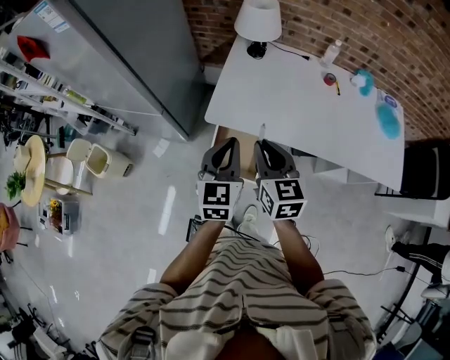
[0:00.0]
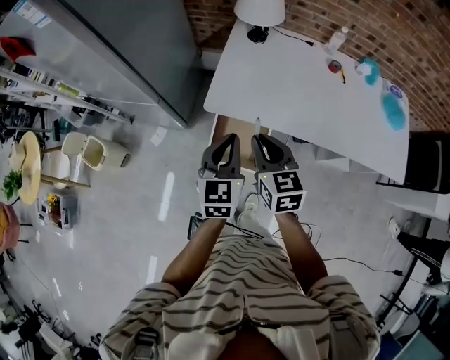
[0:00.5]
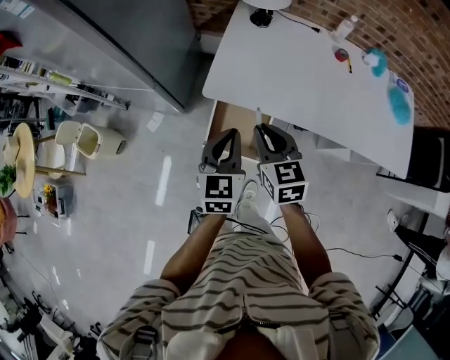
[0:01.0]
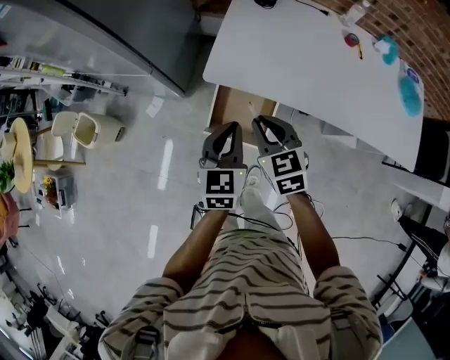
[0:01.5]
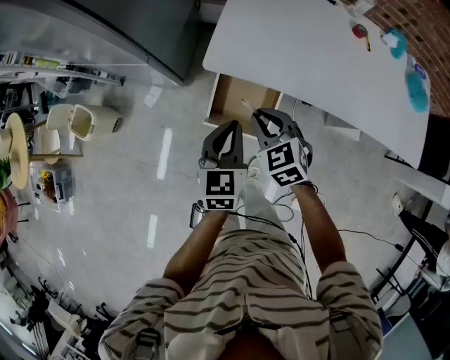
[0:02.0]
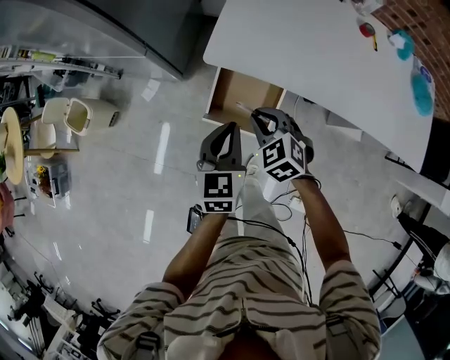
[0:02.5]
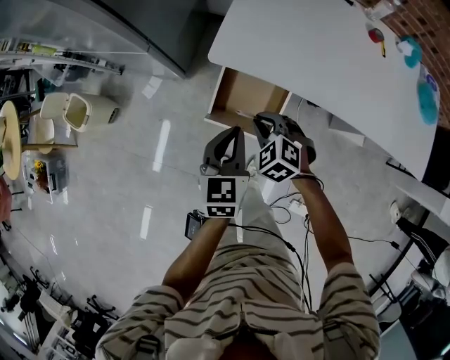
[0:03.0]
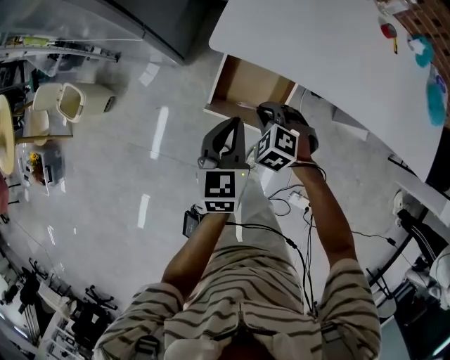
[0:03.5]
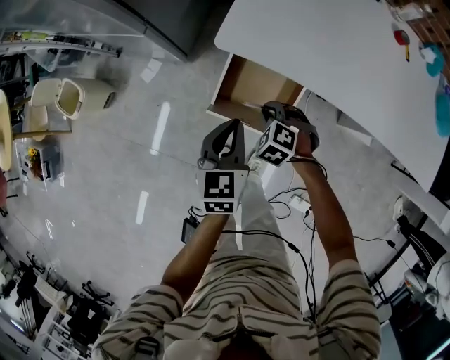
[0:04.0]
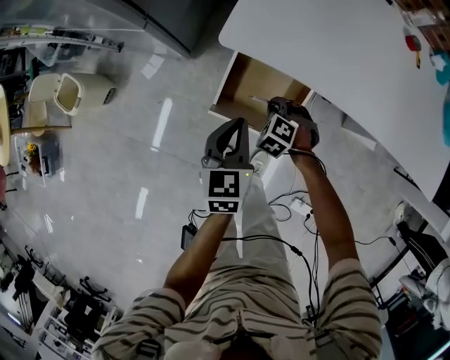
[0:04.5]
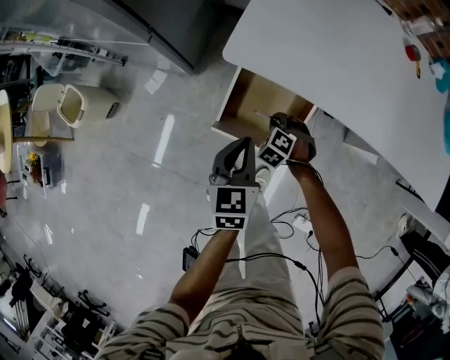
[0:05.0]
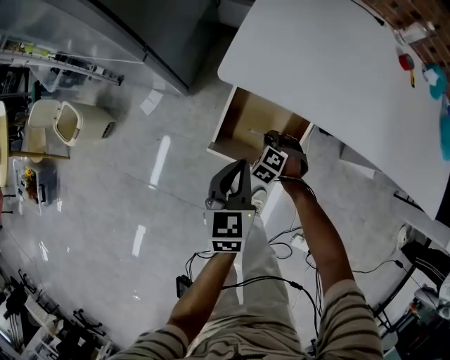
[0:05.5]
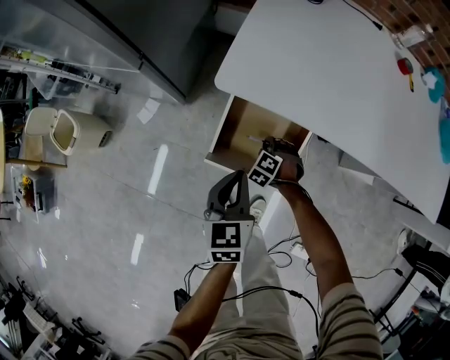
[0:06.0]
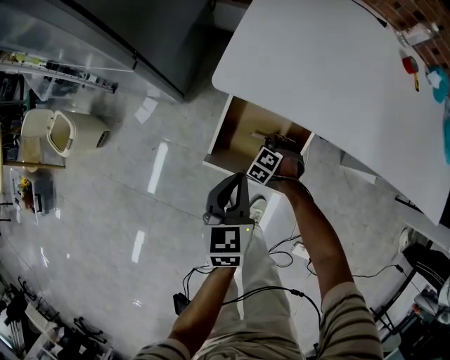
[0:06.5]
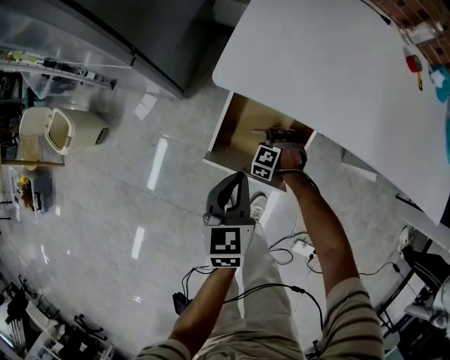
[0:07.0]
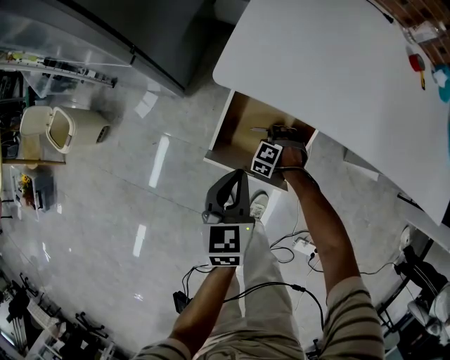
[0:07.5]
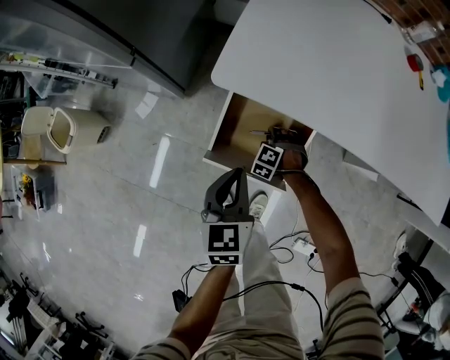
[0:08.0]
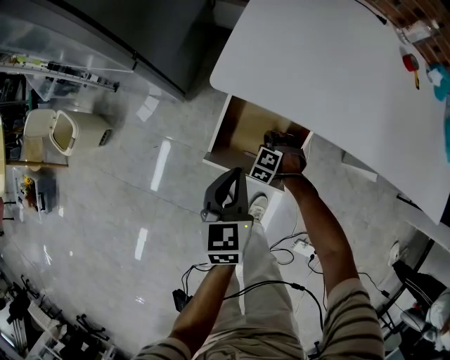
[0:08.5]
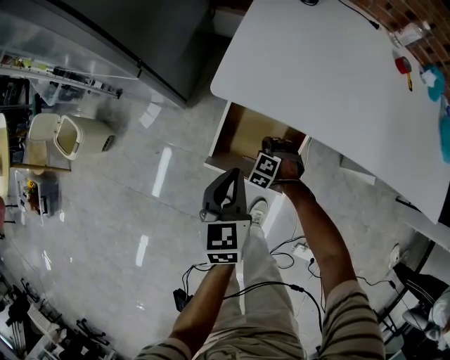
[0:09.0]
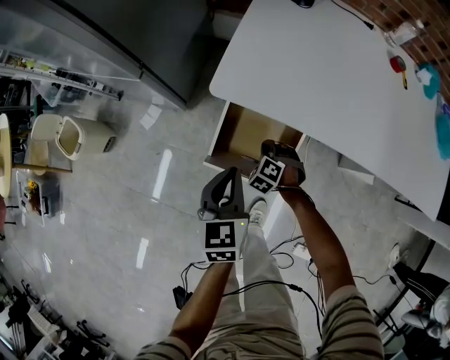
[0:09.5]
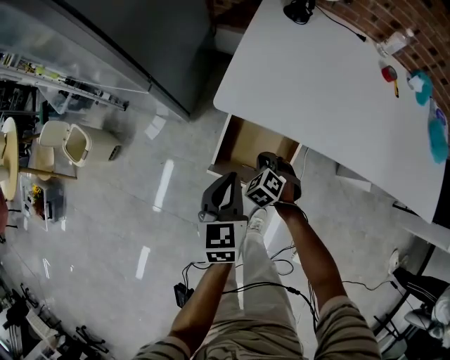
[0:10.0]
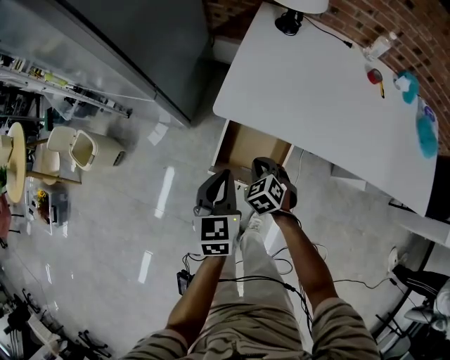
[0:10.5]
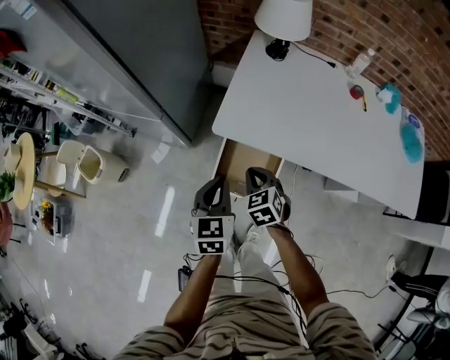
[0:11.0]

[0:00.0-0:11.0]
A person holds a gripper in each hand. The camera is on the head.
0:00.0 to 0:02.0: The two grippers go about 15 cm downward. The right gripper turns by some 40 degrees.
0:02.0 to 0:03.5: The right gripper heads downward, covering roughly 15 cm, and turns by approximately 30 degrees. Meanwhile the left gripper is displaced downward by approximately 10 cm.
0:03.5 to 0:05.5: The left gripper is displaced downward by about 10 cm; the right gripper travels downward by roughly 20 cm.
0:05.5 to 0:07.5: The right gripper shifts roughly 10 cm downward.
0:07.5 to 0:09.0: The right gripper is displaced upward by roughly 5 cm.
0:09.0 to 0:11.0: The right gripper heads upward, covering roughly 35 cm, and rolls clockwise, seen from behind, by roughly 50 degrees. Meanwhile the left gripper goes approximately 15 cm upward.

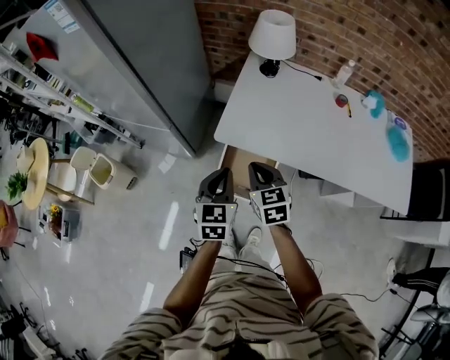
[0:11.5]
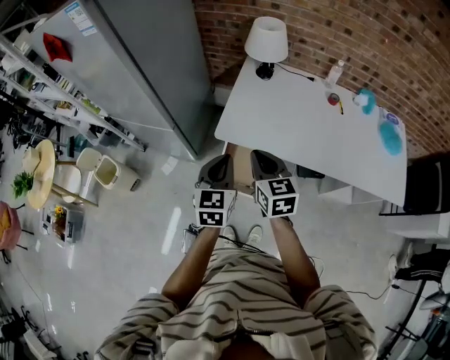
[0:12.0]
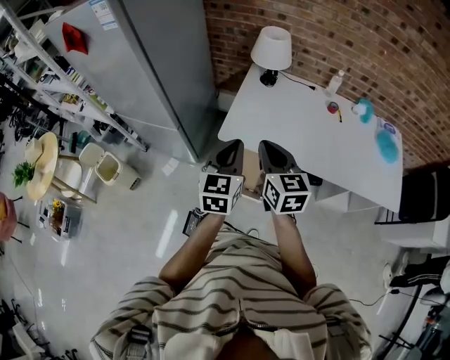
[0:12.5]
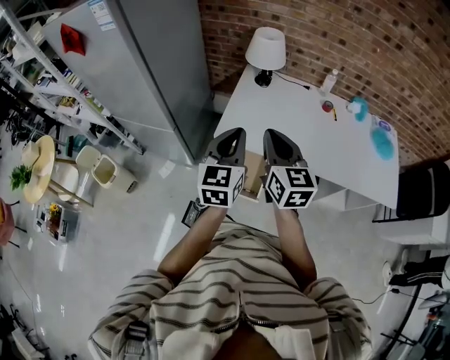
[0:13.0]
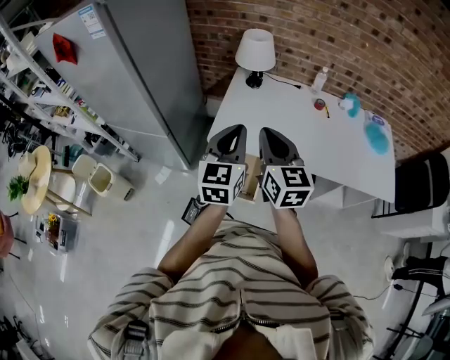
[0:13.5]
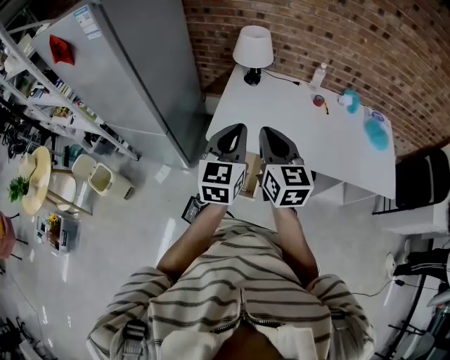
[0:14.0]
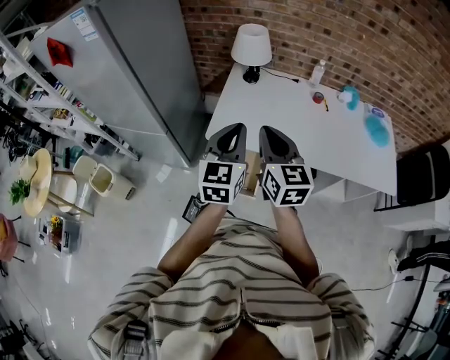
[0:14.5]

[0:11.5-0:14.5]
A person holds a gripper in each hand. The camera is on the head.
0:11.5 to 0:13.0: Both grippers move upward, some 20 cm. The right gripper changes its angle by some 30 degrees.
0:13.0 to 0:14.5: There are only small adjustments of the grippers.

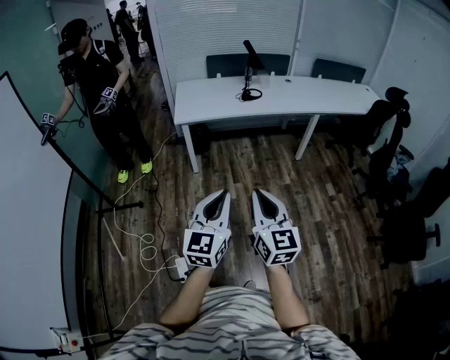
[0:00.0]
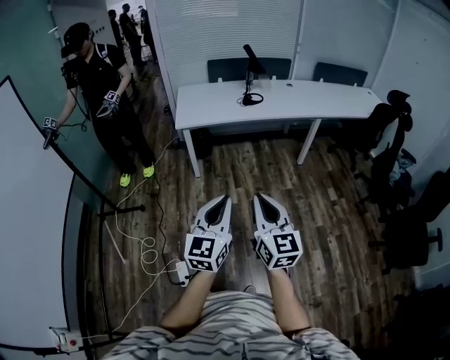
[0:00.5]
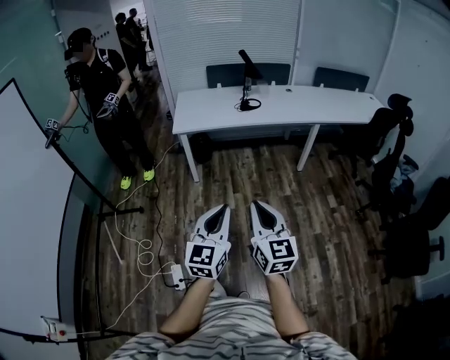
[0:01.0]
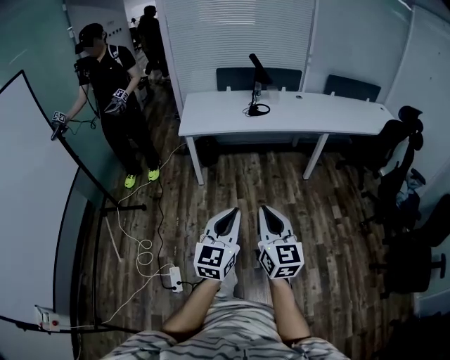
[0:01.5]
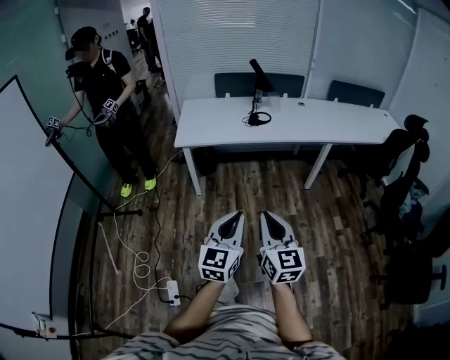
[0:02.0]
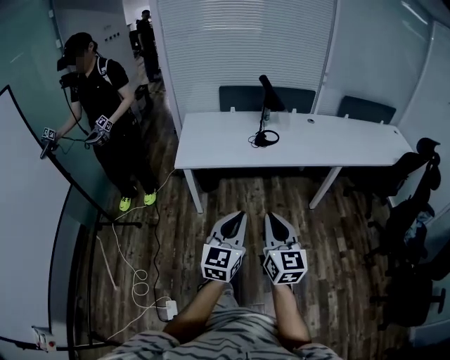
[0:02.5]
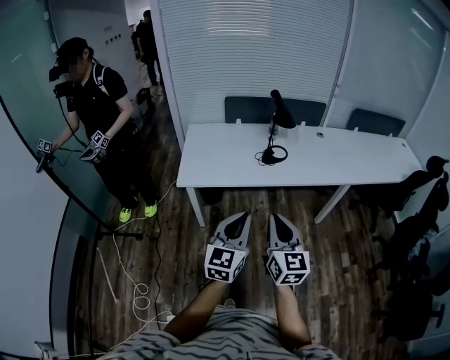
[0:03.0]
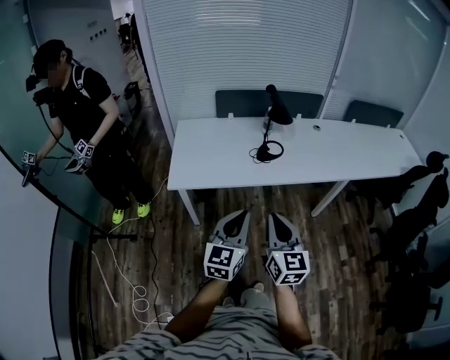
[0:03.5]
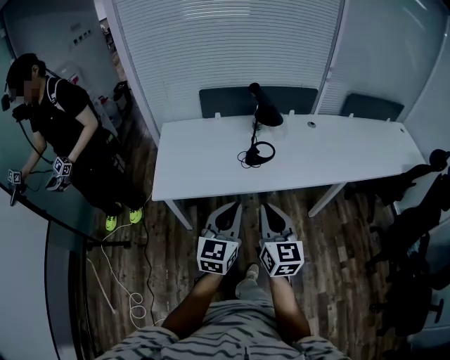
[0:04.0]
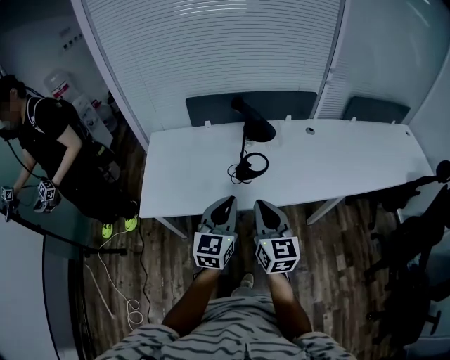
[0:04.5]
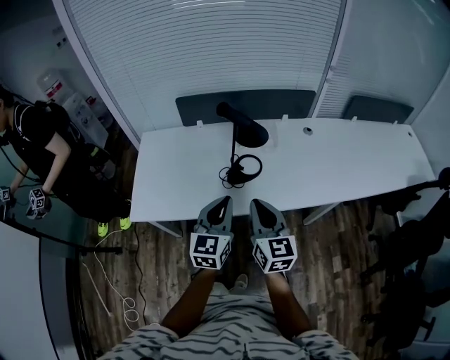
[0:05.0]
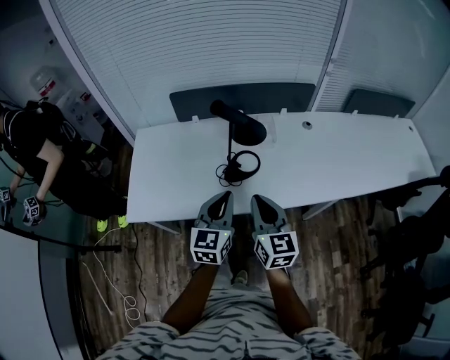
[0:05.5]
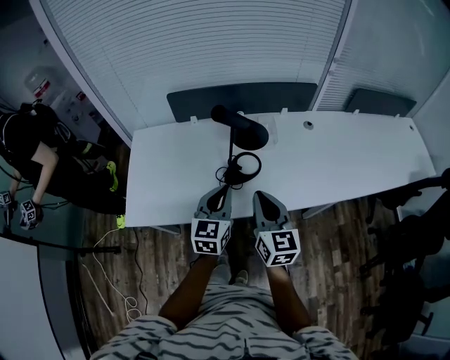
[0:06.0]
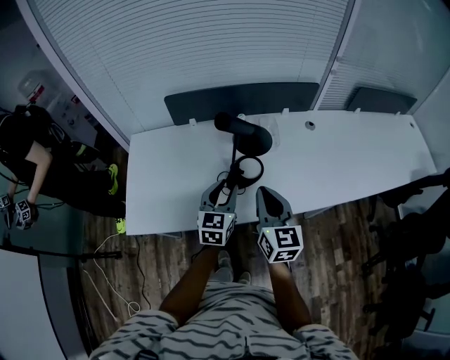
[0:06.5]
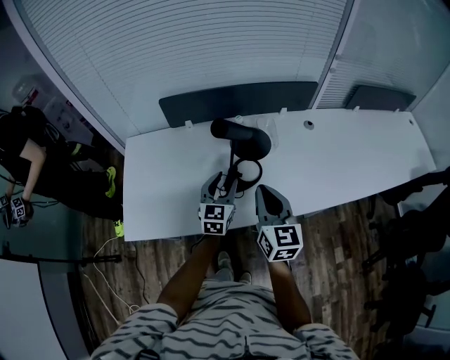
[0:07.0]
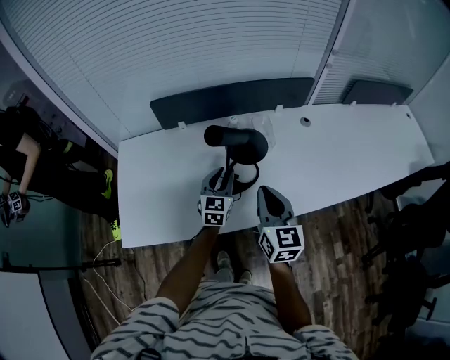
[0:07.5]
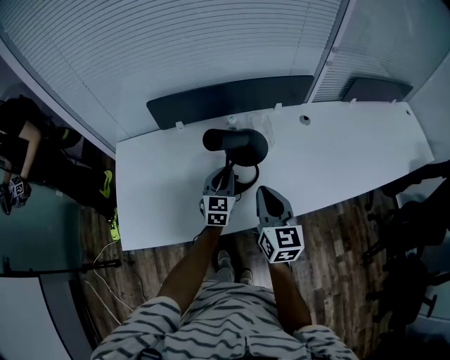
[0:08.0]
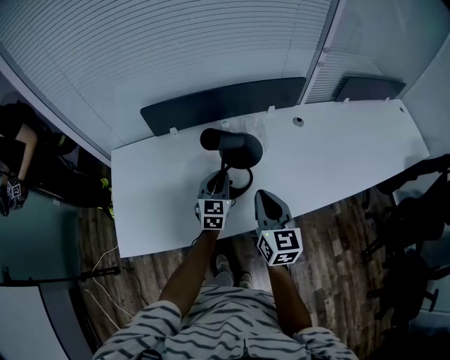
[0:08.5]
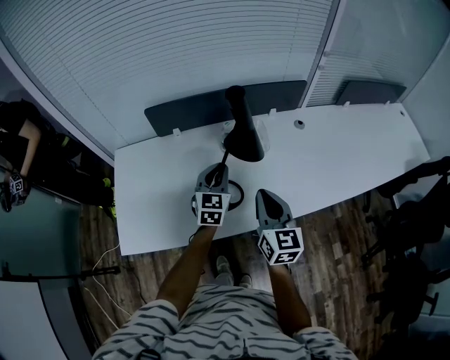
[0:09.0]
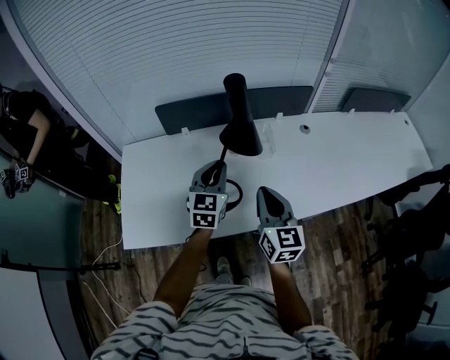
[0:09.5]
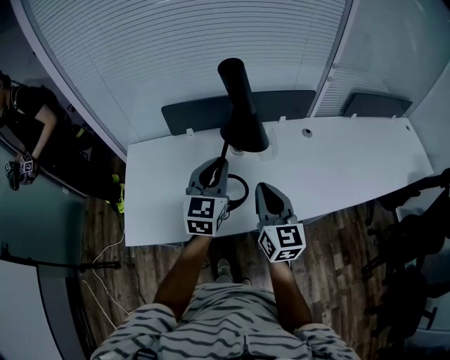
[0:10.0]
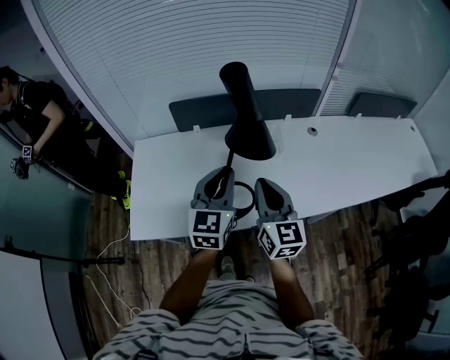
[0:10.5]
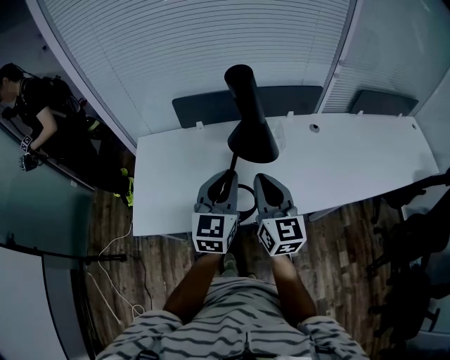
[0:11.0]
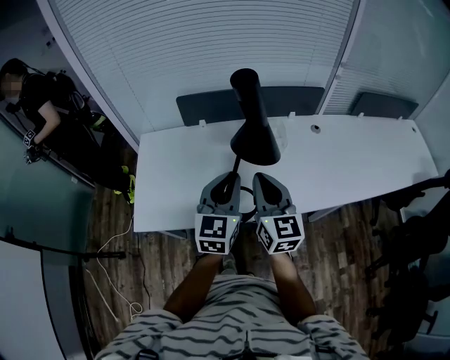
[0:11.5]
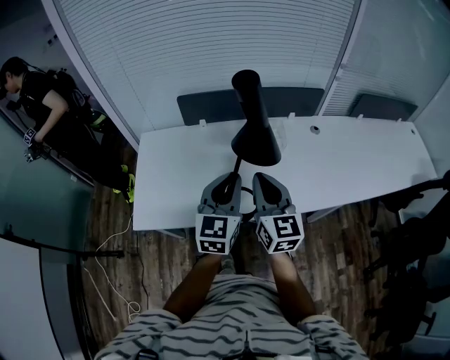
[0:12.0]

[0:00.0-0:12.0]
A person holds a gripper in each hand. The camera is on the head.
0:00.0 to 0:02.0: The two grippers go about 15 cm forward, to the right and downward.
0:02.0 to 0:04.0: The two grippers travel together, forward, about 50 cm.
0:04.0 to 0:06.0: Both grippers travel together forward, some 25 cm.
0:06.0 to 0:08.0: The left gripper heads forward and downward, covering roughly 20 cm, and opens, then closes once more, while the right gripper is displaced forward by some 10 cm.
0:08.0 to 0:10.0: The right gripper heads upward, covering roughly 5 cm. The left gripper goes approximately 20 cm upward.
0:10.0 to 0:12.0: The left gripper shifts approximately 10 cm backward; the right gripper moves about 5 cm.

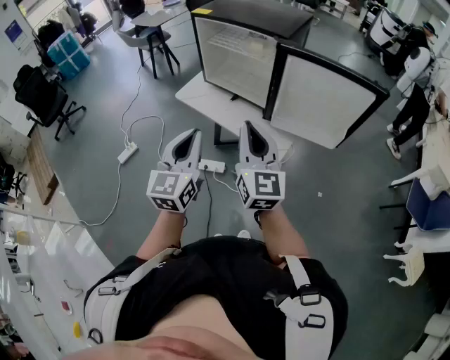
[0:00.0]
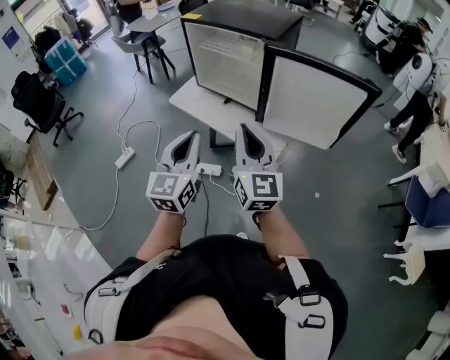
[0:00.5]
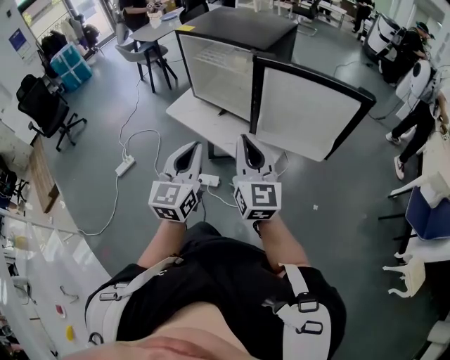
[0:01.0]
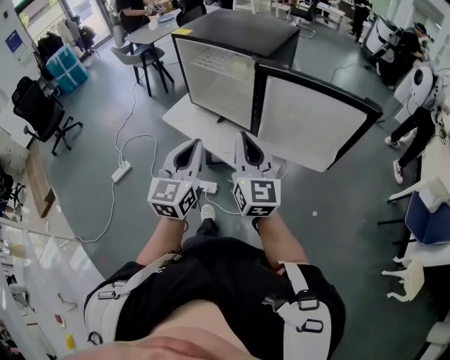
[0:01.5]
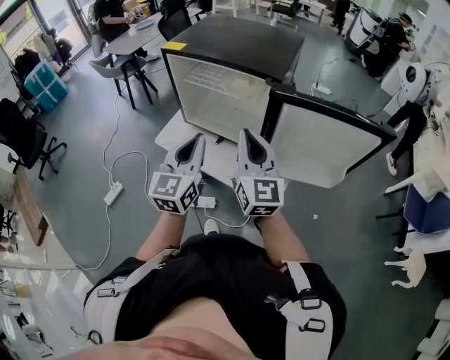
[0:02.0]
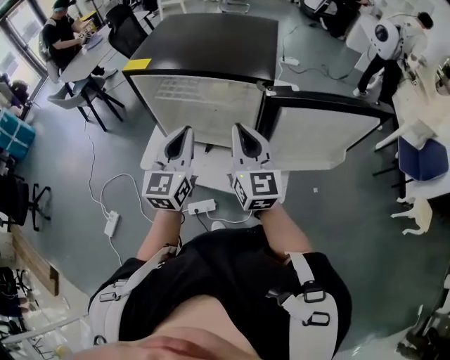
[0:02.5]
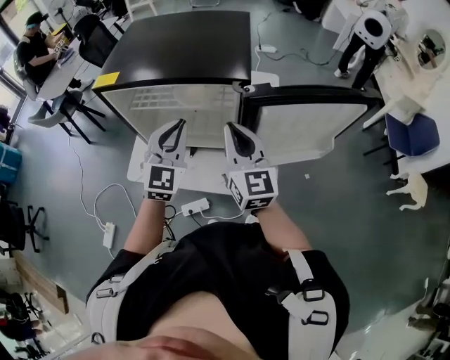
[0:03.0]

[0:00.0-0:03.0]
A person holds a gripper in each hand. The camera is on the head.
0:00.0 to 0:01.5: The right gripper heads forward and to the right, covering roughly 10 cm, while the left gripper is displaced to the right and forward by approximately 10 cm.
0:01.5 to 0:03.0: Both grippers travel together forward, approximately 25 cm. The right gripper rotates roughly 20 degrees. The left gripper rotates approximately 40 degrees.
